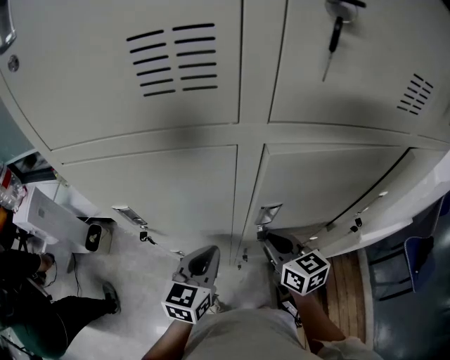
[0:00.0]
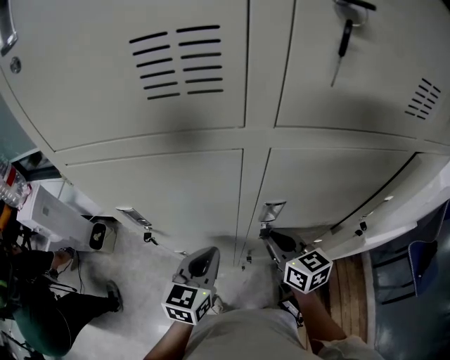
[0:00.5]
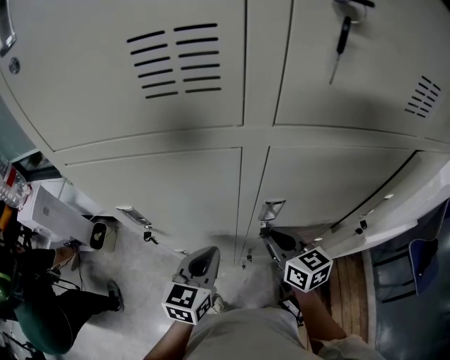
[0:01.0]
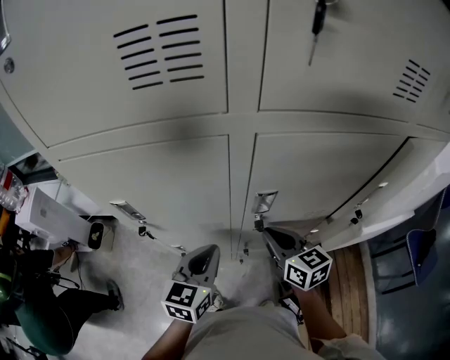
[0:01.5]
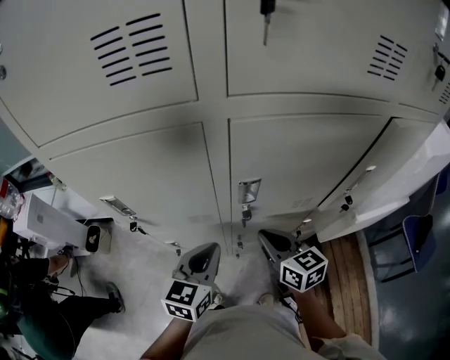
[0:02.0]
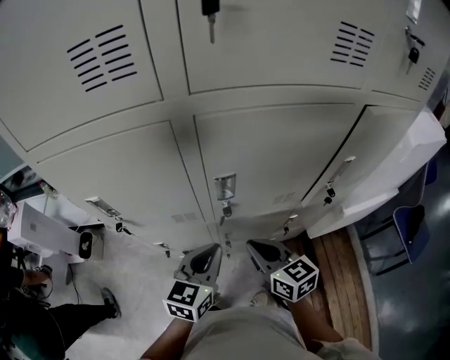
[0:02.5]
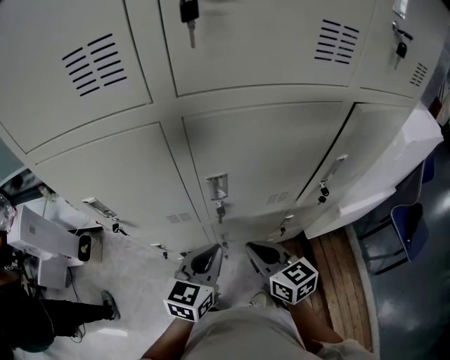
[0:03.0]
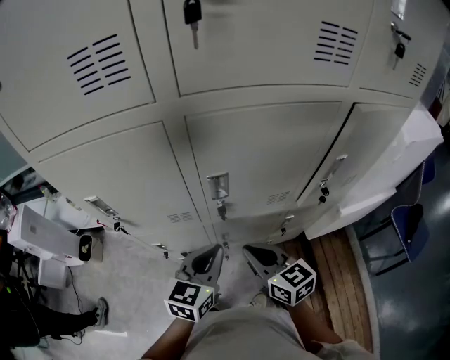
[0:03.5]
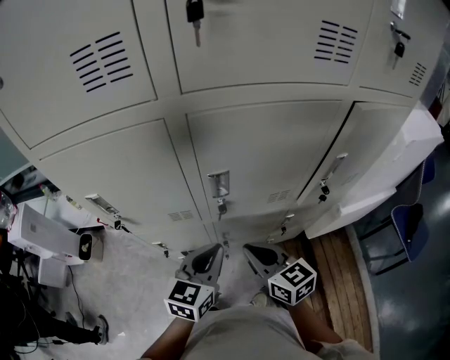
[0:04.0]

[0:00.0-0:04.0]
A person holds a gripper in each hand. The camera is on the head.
0:00.0 to 0:02.0: The right gripper changes place by approximately 5 cm.
0:02.0 to 0:04.0: The left gripper travels to the right by some 5 cm, while the right gripper moves backward, about 5 cm.

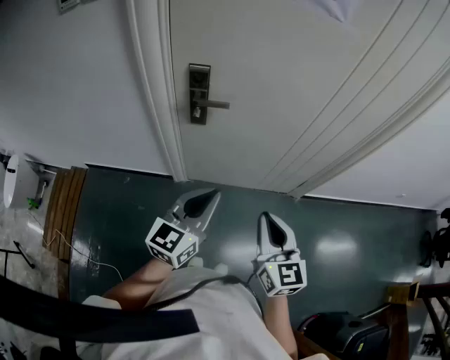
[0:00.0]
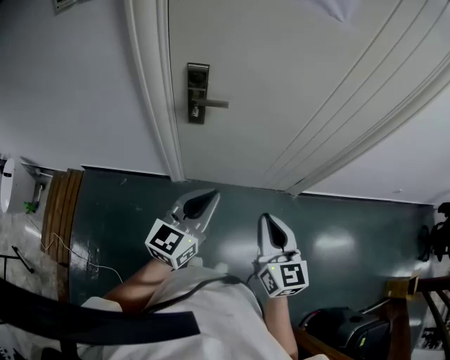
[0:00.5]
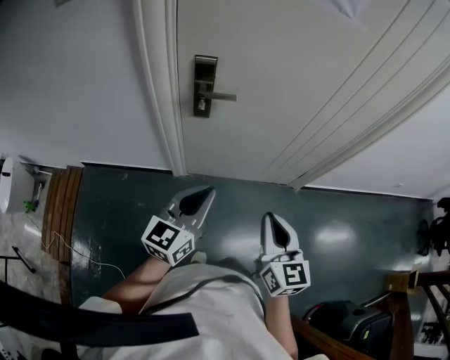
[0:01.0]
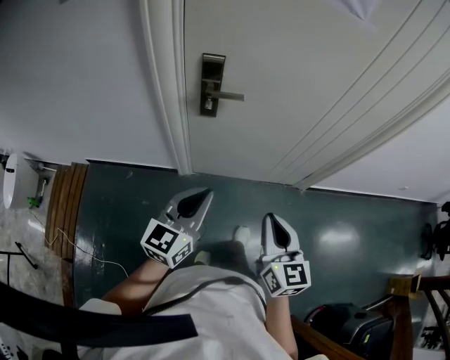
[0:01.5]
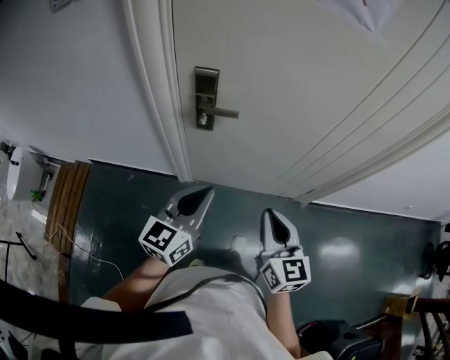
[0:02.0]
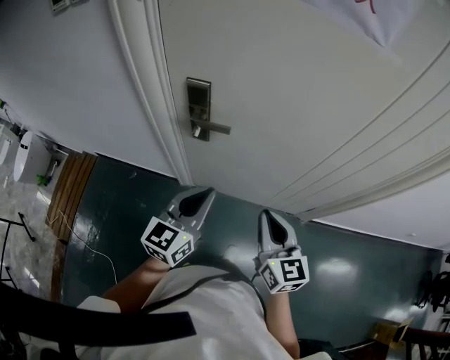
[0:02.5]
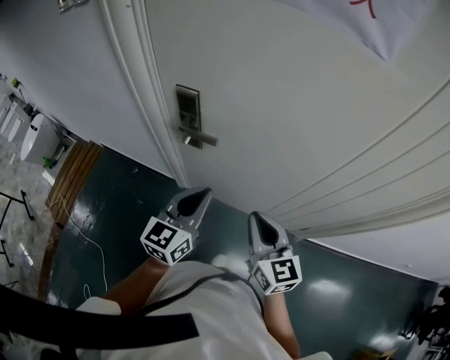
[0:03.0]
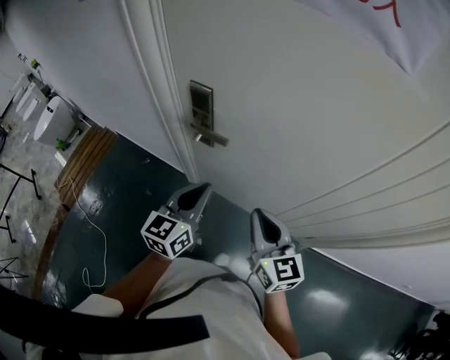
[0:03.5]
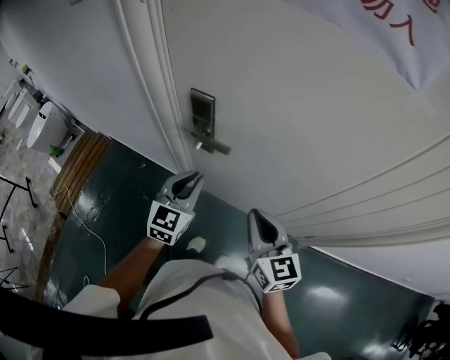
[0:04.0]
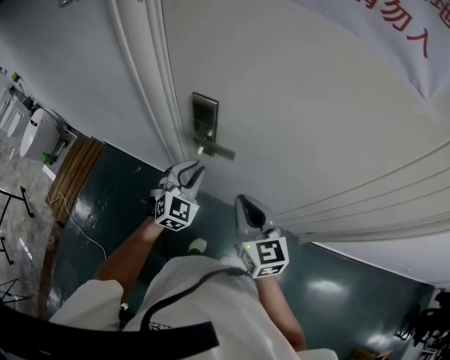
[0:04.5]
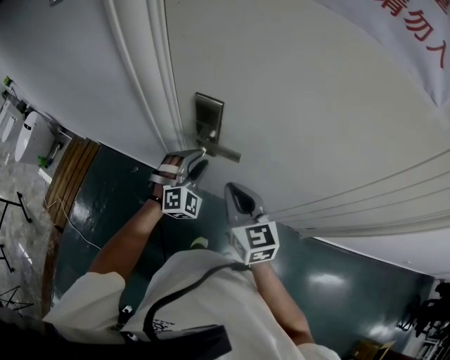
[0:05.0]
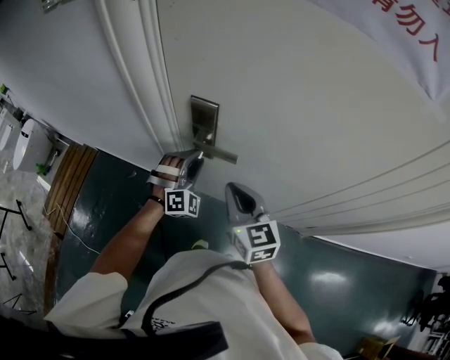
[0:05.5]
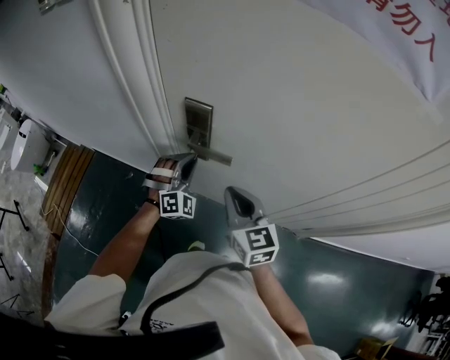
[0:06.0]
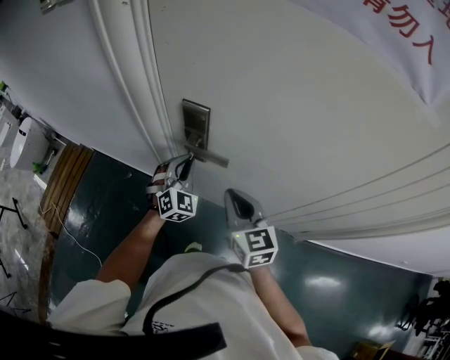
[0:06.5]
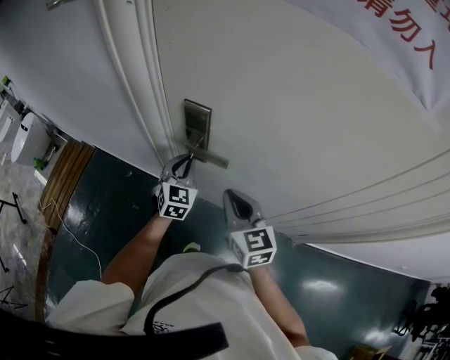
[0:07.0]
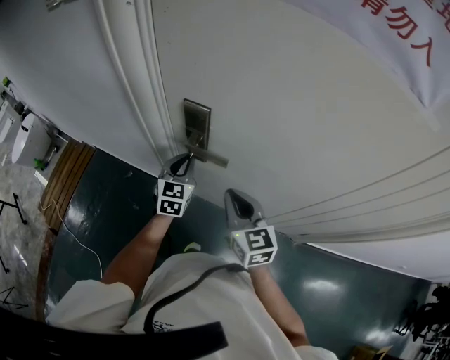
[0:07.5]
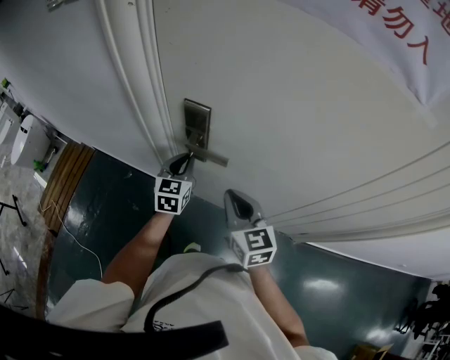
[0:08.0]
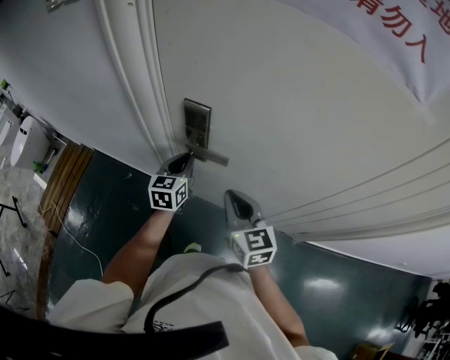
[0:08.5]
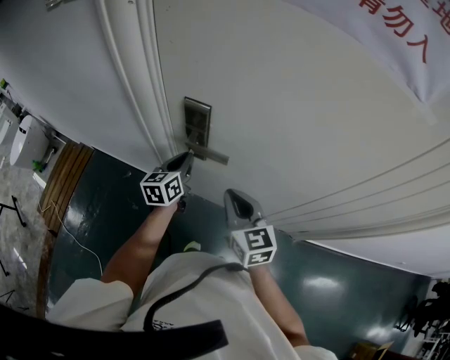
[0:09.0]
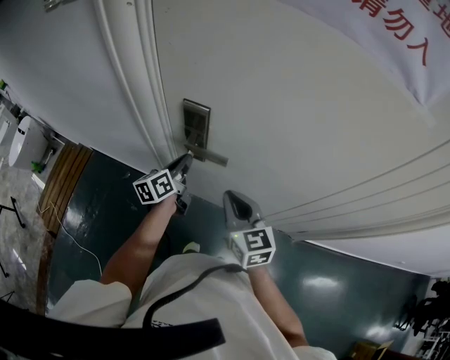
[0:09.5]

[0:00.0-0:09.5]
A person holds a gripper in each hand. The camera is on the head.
0:00.0 to 0:02.0: Both grippers travel together forward, about 5 cm.
0:02.0 to 0:04.0: The right gripper changes place by some 15 cm, and changes its angle by some 20 degrees. The left gripper shifts by some 20 cm, and turns by about 30 degrees.
0:04.0 to 0:05.5: The right gripper shifts approximately 15 cm forward and to the left. Meanwhile the left gripper goes roughly 15 cm forward and downward, rotates around the line of its fingers by some 60 degrees, clockwise from behind, and opens up.
0:05.5 to 0:07.5: The left gripper rolls counterclockwise, seen from behind, by approximately 60 degrees, and closes up.
0:07.5 to 0:09.5: The left gripper twists roughly 50 degrees counterclockwise, seen from behind.

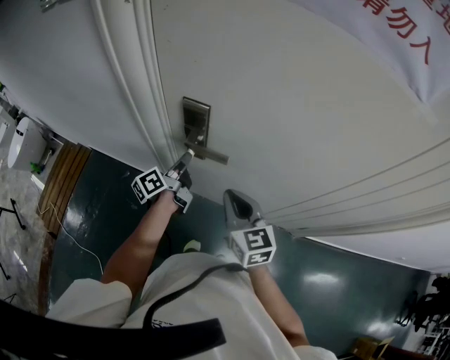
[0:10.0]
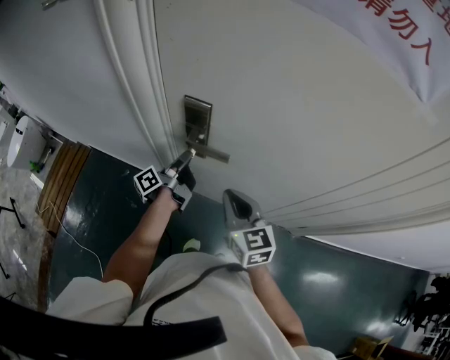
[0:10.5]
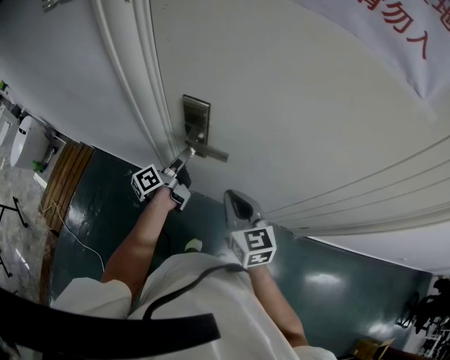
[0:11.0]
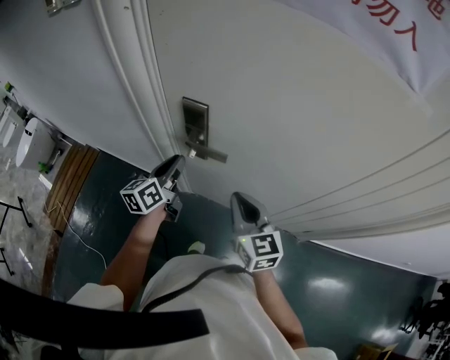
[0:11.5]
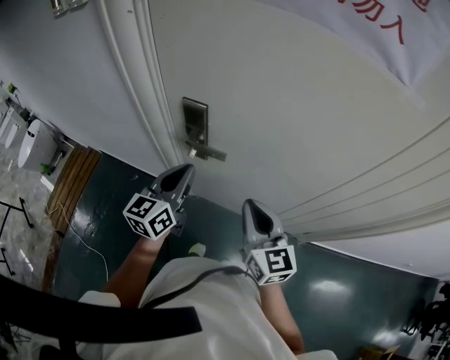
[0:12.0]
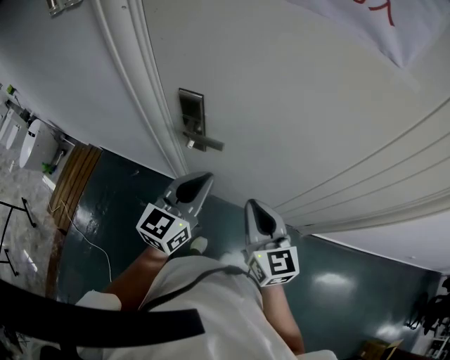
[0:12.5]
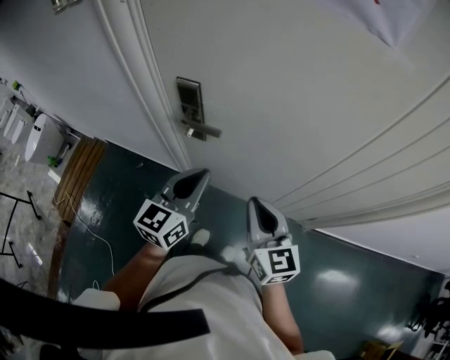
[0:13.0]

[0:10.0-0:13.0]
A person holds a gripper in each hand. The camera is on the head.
0:10.0 to 0:11.5: The left gripper moves upward, roughly 5 cm, changes its angle by some 30 degrees, and opens and closes again.
0:11.5 to 0:13.0: The right gripper travels backward and to the right by approximately 10 cm; the left gripper shifts approximately 20 cm to the right, backward and upward, and swivels about 30 degrees.

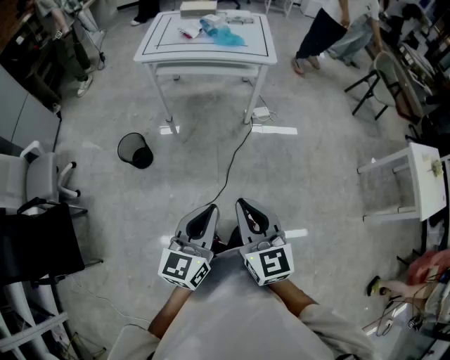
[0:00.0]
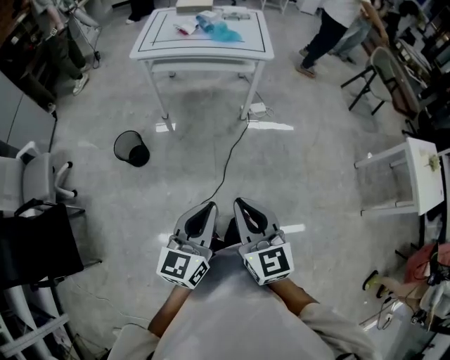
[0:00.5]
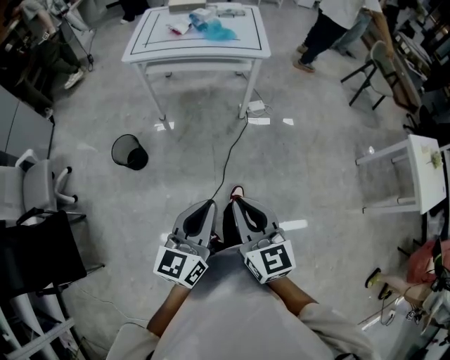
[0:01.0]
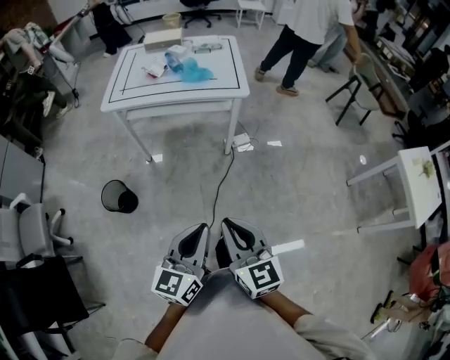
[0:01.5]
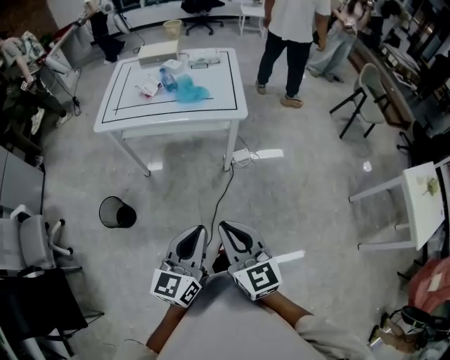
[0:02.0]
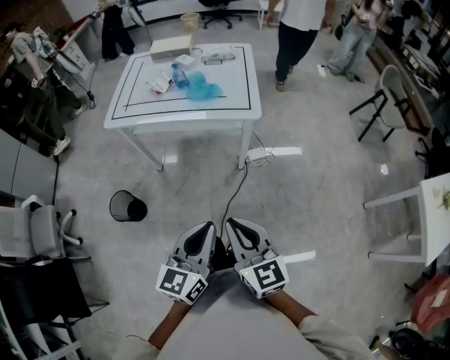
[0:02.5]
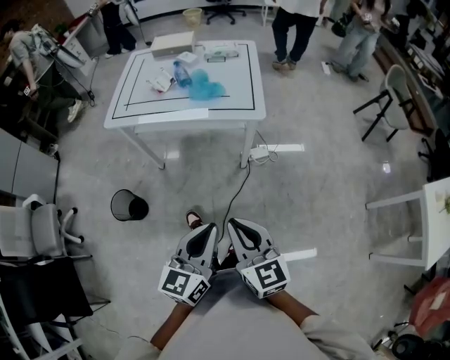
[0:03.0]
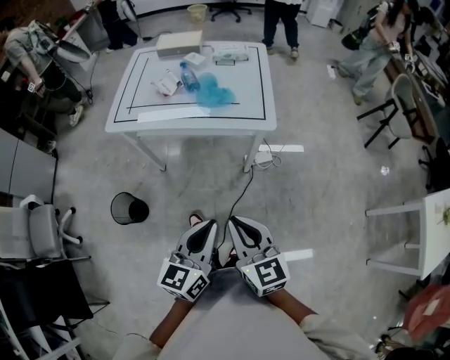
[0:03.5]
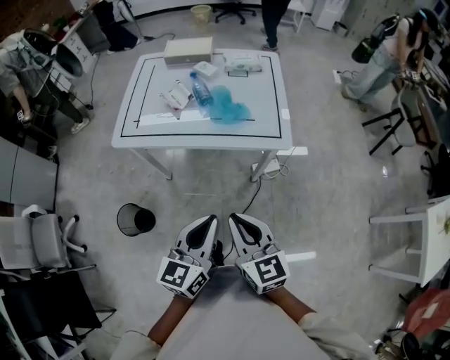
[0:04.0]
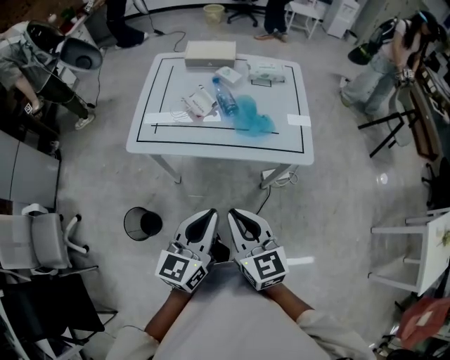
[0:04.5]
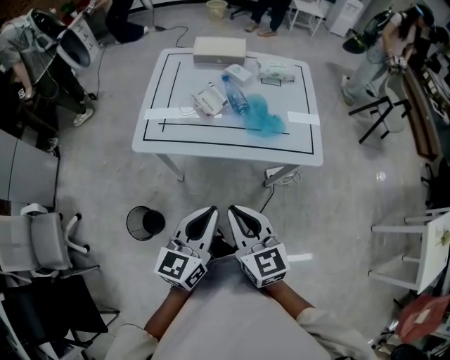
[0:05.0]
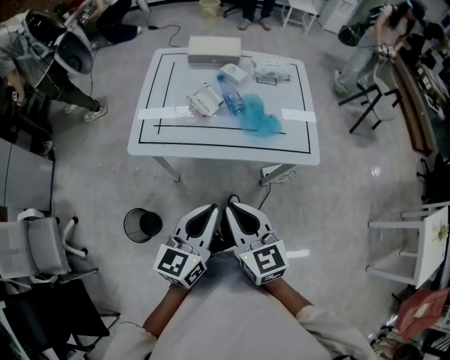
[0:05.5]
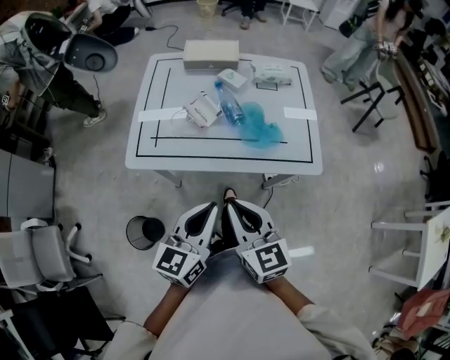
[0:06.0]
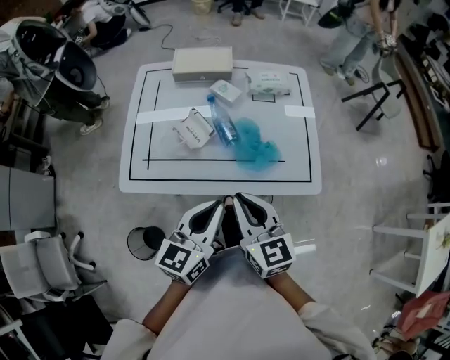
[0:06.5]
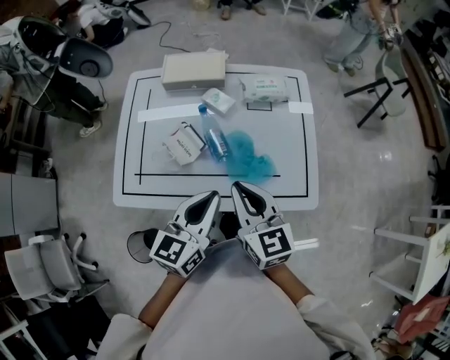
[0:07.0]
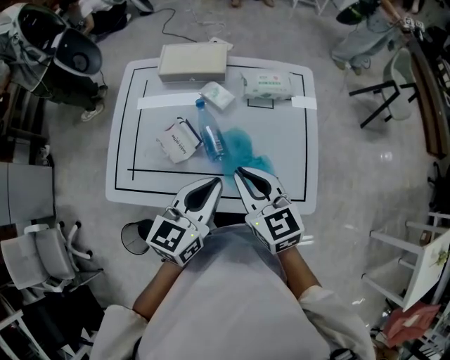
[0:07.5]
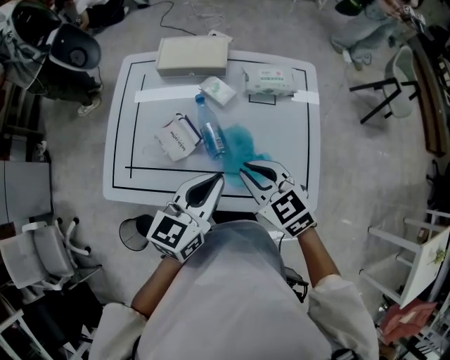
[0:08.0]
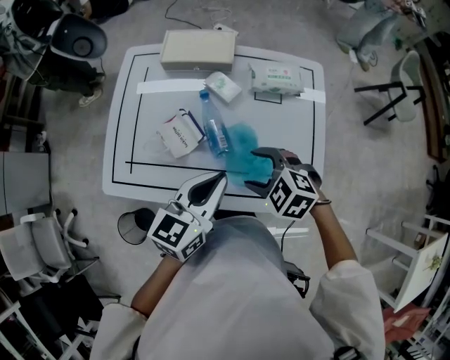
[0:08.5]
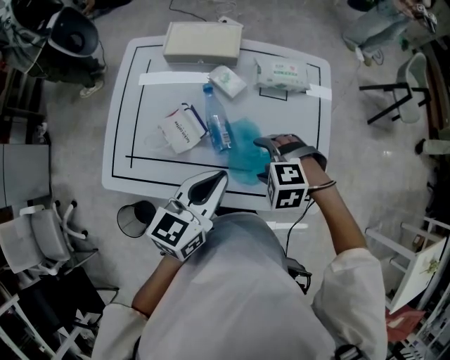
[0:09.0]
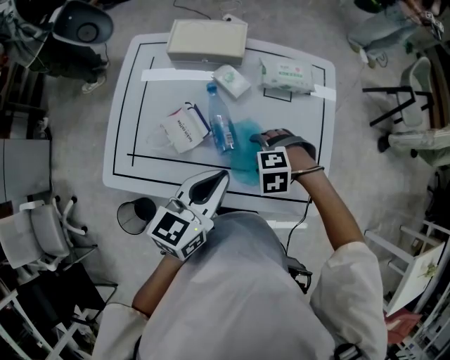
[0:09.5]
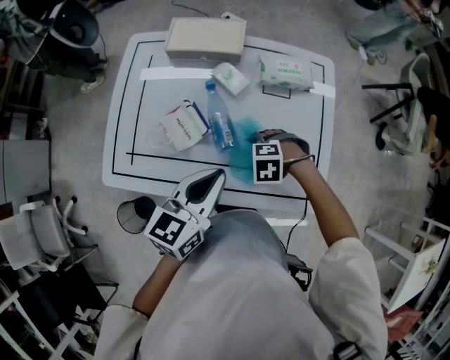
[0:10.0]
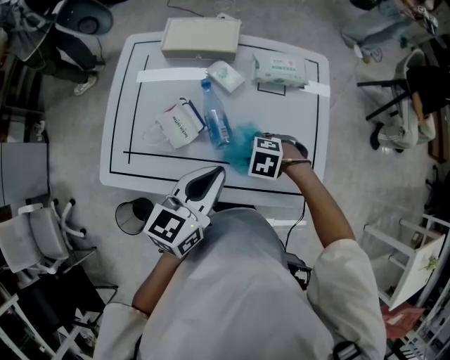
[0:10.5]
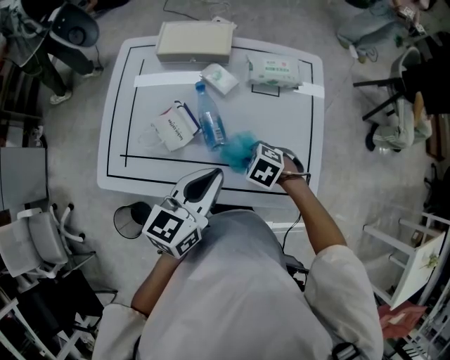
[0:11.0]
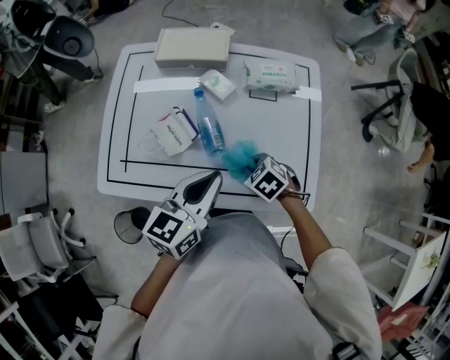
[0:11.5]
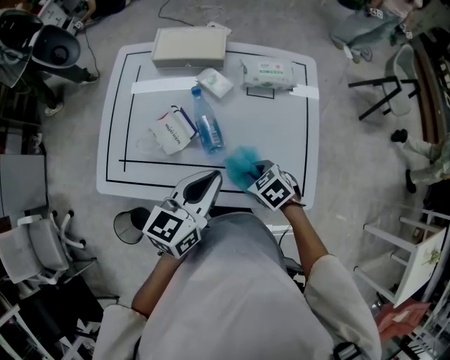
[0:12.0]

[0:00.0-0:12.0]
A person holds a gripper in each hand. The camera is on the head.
0:00.0 to 0:02.0: Both grippers move forward, some 25 cm.
0:02.0 to 0:04.0: Both grippers travel together forward, roughly 20 cm.
0:04.0 to 0:06.0: Both grippers travel together forward and to the left, some 20 cm.
0:06.0 to 0:08.0: Both grippers move forward, some 25 cm. The right gripper swivels some 30 degrees.
0:08.0 to 0:10.0: The right gripper heads downward, covering some 20 cm, tips its fingers downward by roughly 40 degrees, and opens.
0:10.0 to 0:12.0: The right gripper twists some 50 degrees clockwise, seen from behind, and closes its fingers.
